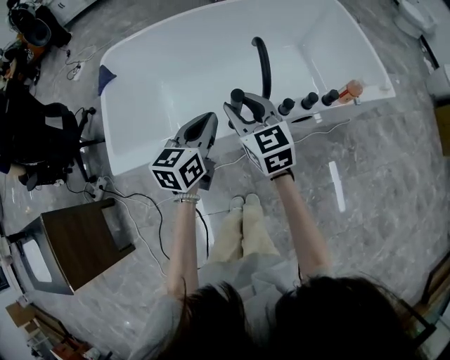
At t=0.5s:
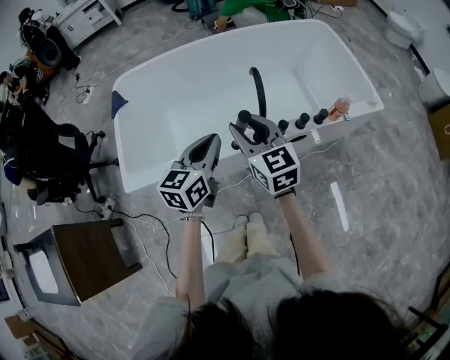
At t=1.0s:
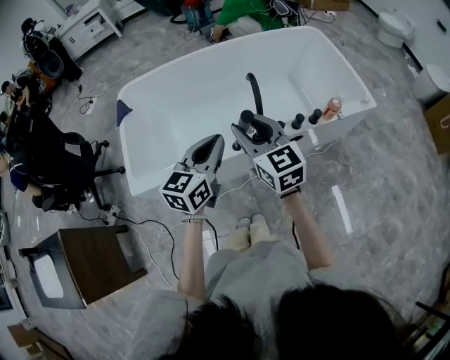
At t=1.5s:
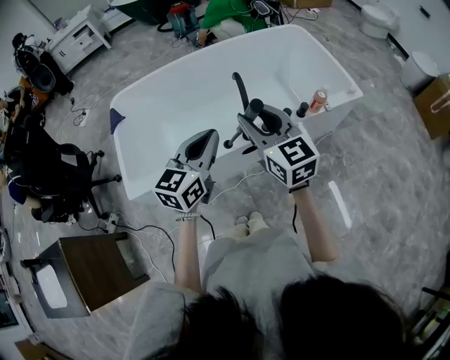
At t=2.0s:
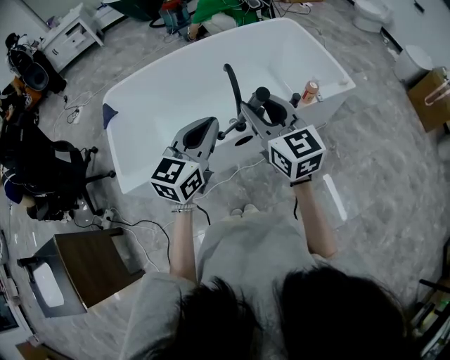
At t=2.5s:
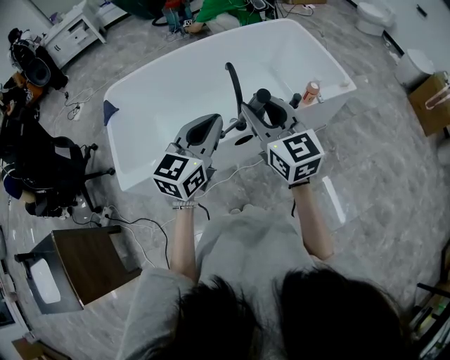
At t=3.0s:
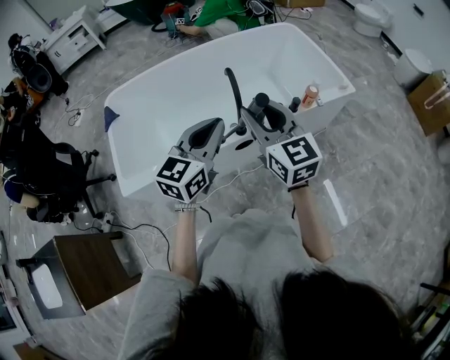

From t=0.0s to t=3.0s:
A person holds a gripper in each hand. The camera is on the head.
From t=0.0s to t=1.5s: Both grippers move upward and backward, approximately 20 cm.
From t=1.5s to t=3.0s: There are only small adjustments of the grippers.

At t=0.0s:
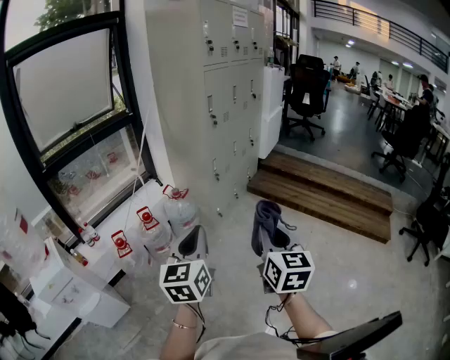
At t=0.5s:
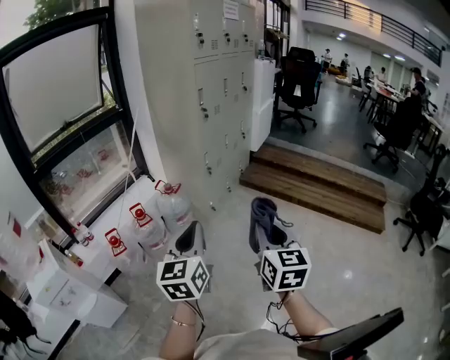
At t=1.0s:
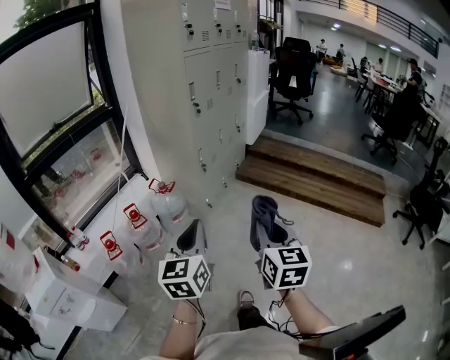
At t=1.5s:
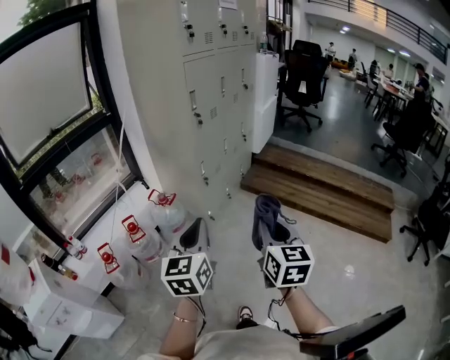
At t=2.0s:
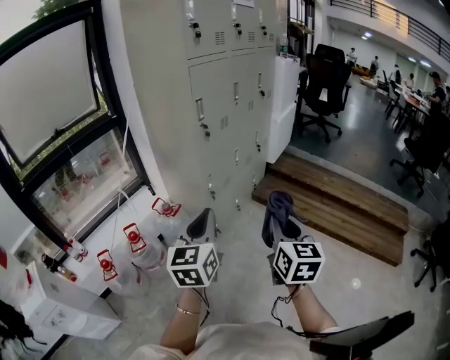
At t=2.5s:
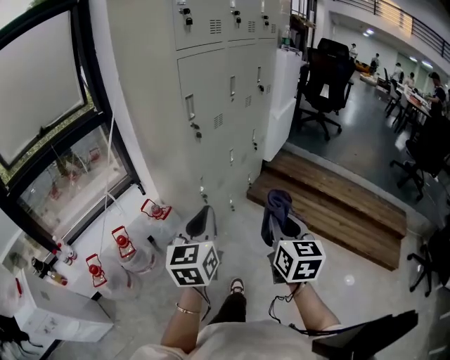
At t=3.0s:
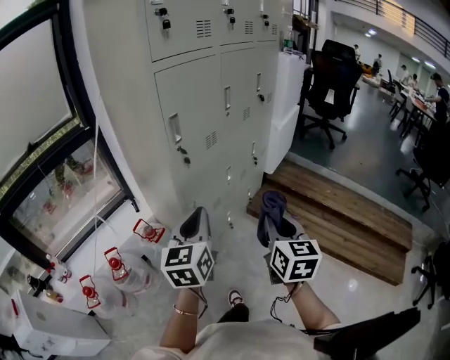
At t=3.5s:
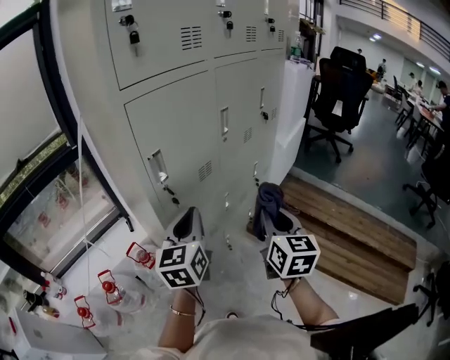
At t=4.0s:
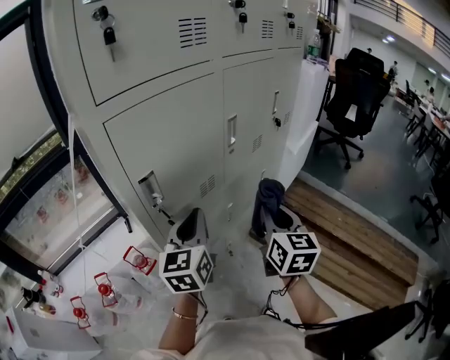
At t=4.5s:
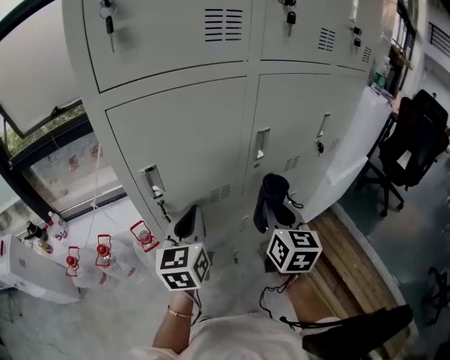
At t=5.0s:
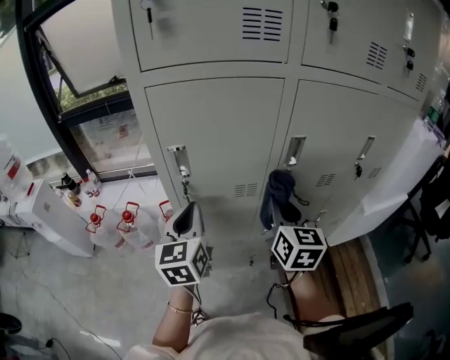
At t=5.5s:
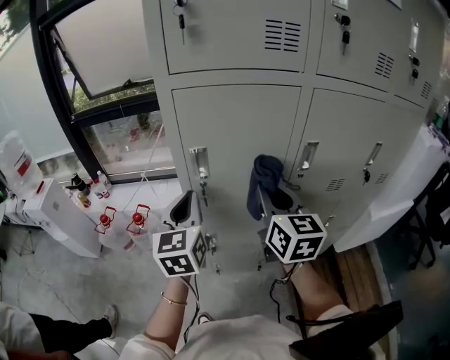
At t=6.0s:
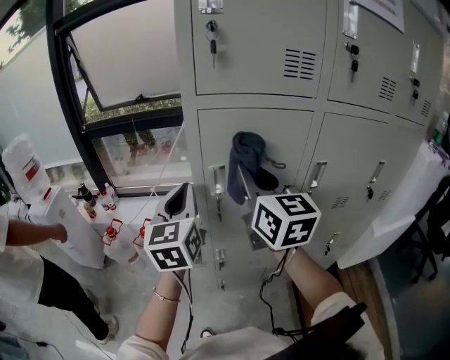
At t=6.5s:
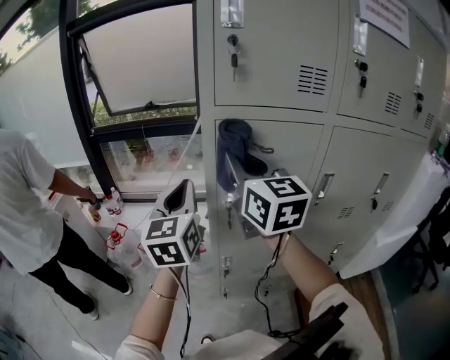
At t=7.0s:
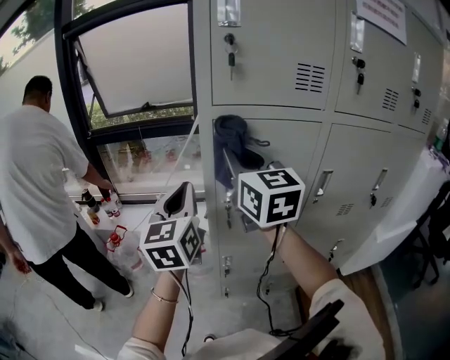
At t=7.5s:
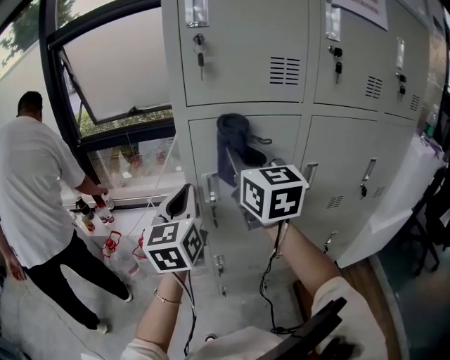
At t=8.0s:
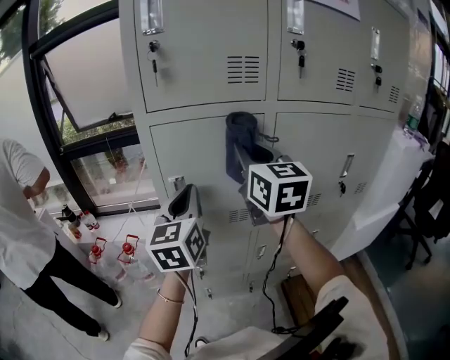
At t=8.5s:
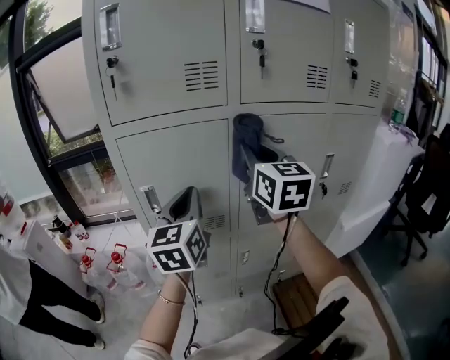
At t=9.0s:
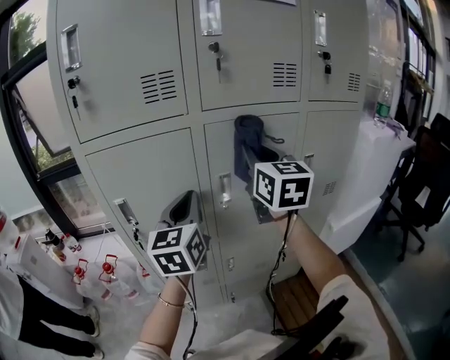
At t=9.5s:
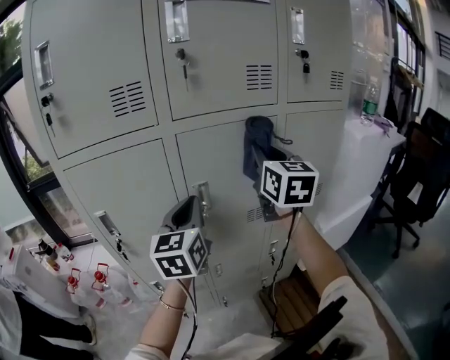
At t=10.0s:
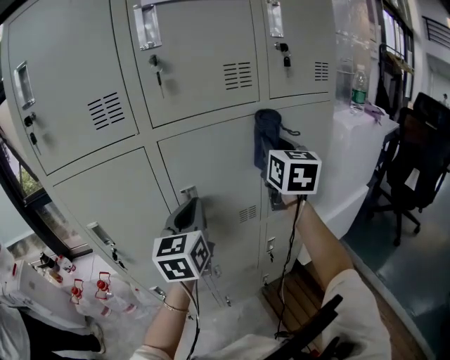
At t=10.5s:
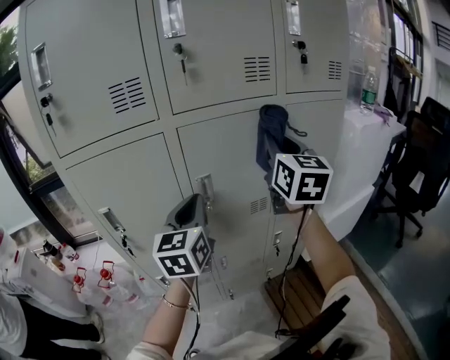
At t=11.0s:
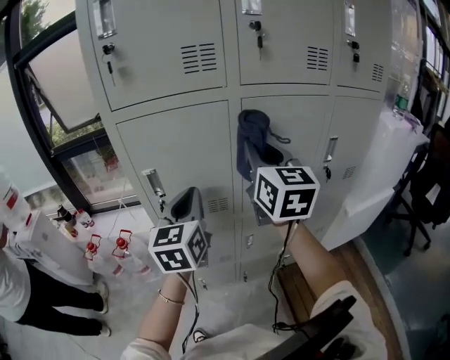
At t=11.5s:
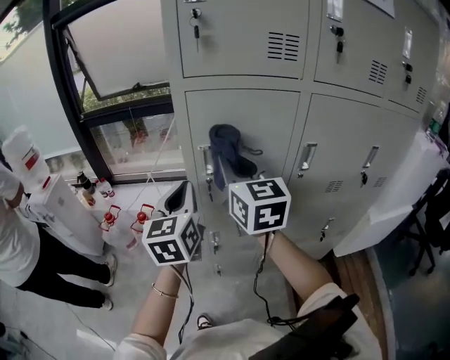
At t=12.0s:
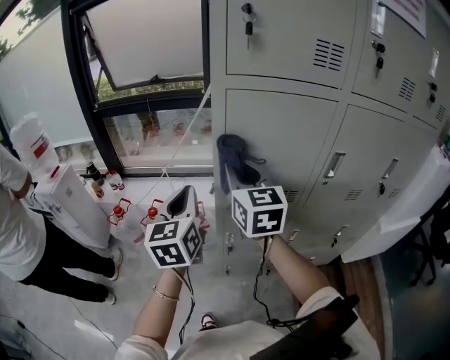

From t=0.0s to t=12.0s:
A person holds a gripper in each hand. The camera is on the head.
From t=0.0s to t=2.0s: The grippers both shift forward by approximately 30 cm.
From t=2.0s to t=4.0s: The two grippers travel together, forward, about 50 cm.
From t=4.0s to t=6.0s: The left gripper moves approximately 20 cm, and turns by approximately 50 degrees. Meanwhile the right gripper moves about 25 cm, and rotates roughly 60 degrees.
From t=6.0s to t=8.0s: Both grippers move to the right, about 10 cm.
From t=8.0s to t=10.0s: Both grippers travel together to the right, some 30 cm. The right gripper rotates some 30 degrees.
From t=10.0s to t=12.0s: The two grippers travel together, about 50 cm. The right gripper rotates approximately 30 degrees. Meanwhile the left gripper turns by about 30 degrees.

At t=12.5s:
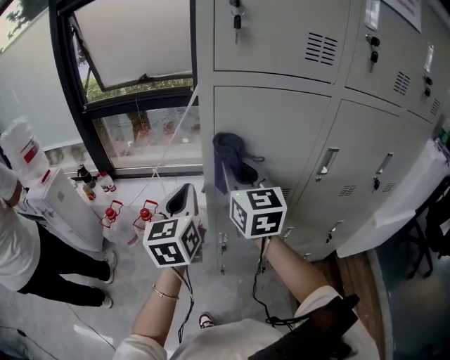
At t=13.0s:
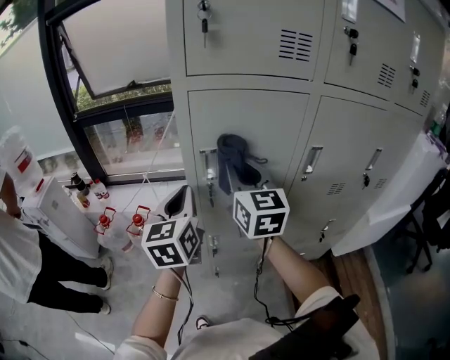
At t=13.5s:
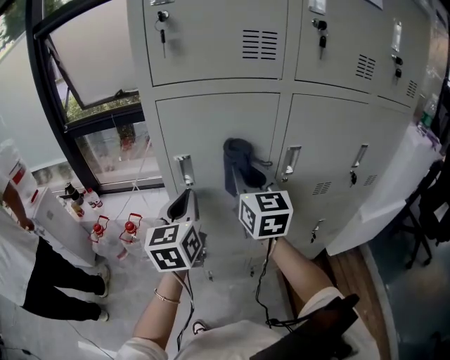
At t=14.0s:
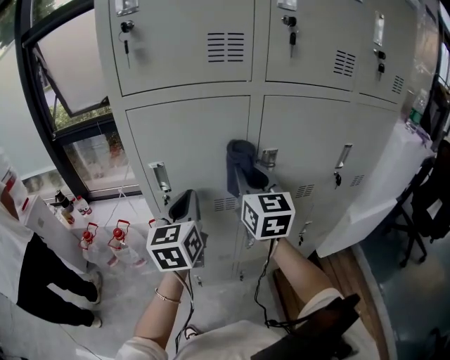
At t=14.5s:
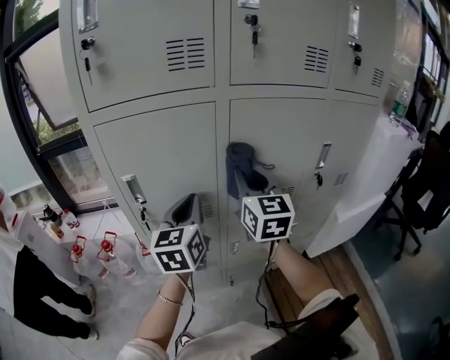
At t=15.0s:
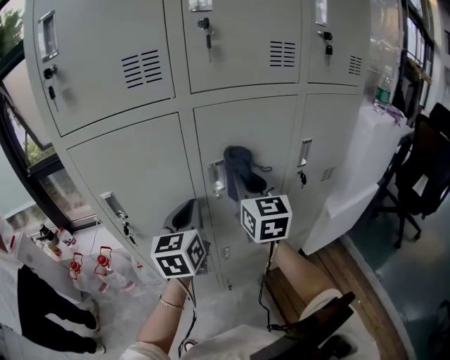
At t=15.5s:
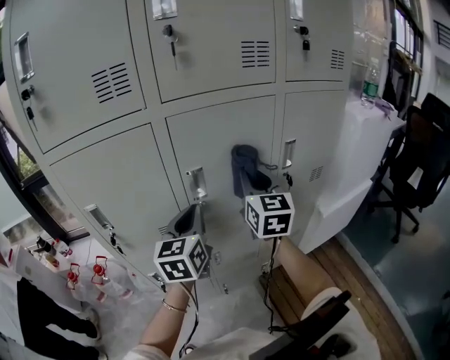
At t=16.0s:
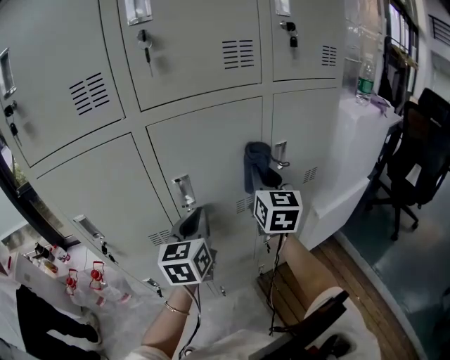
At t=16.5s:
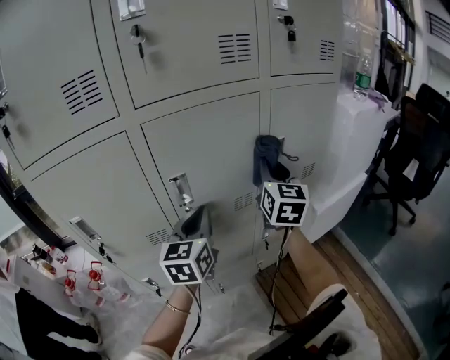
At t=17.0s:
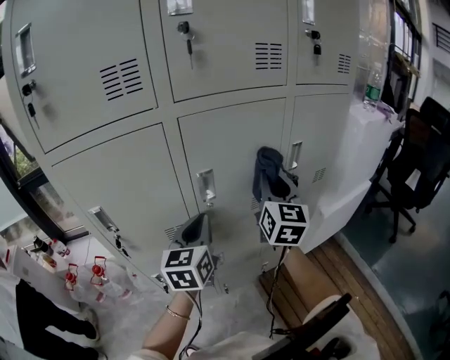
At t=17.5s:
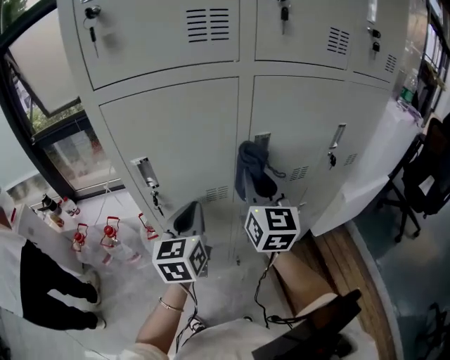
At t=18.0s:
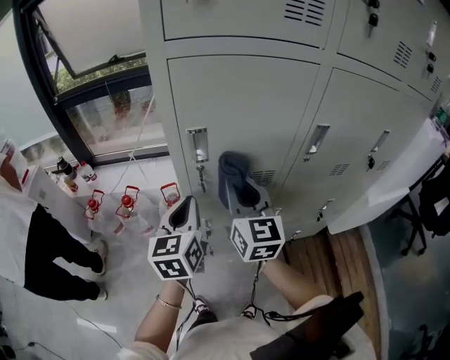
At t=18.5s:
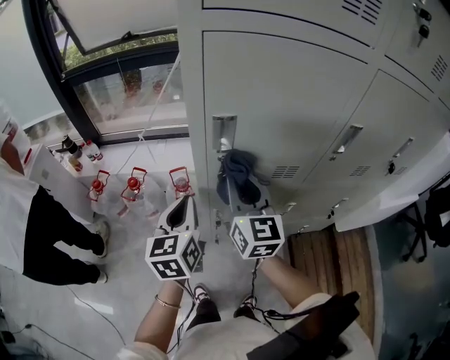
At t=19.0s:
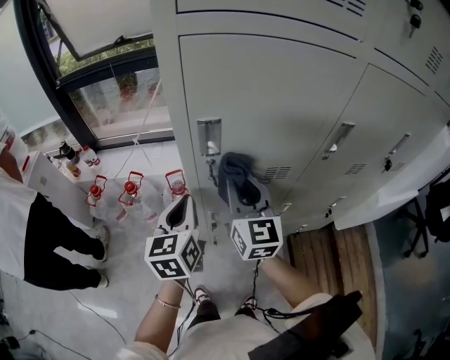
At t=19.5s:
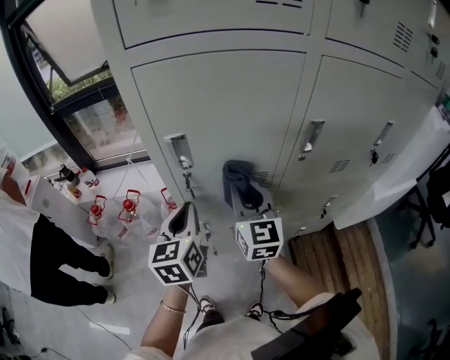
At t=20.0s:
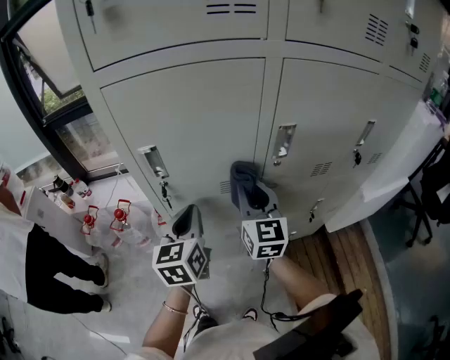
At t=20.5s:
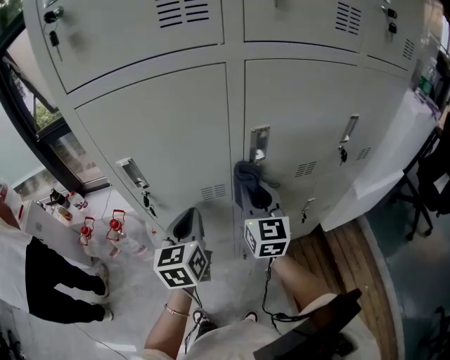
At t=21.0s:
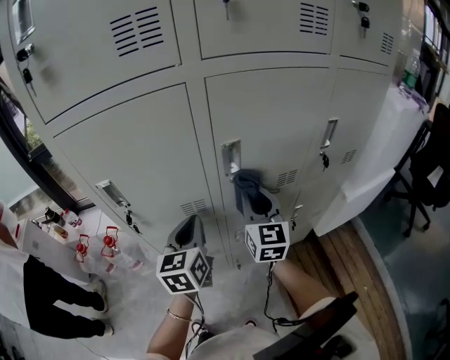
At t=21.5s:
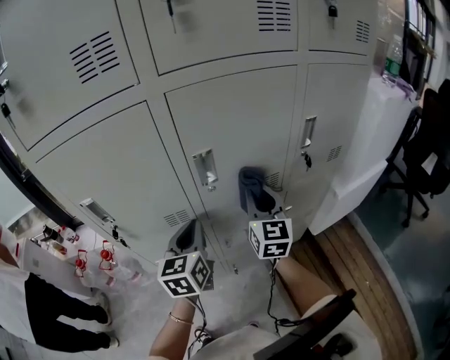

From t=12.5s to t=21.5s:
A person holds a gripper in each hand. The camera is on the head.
From t=12.5s to t=14.5s: The two grippers go approximately 25 cm to the right.
From t=14.5s to t=17.0s: The left gripper heads to the right, covering about 10 cm, while the right gripper goes some 15 cm to the right, and changes its angle by approximately 20 degrees.
From t=17.0s to t=19.5s: The left gripper moves some 30 cm, and turns by approximately 20 degrees. Meanwhile the right gripper changes place by some 35 cm, and changes its angle by about 30 degrees.
From t=19.5s to t=21.5s: The two grippers go some 25 cm to the right.

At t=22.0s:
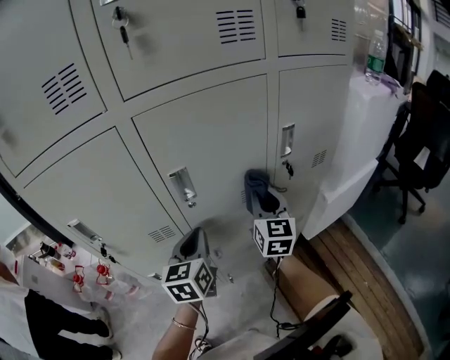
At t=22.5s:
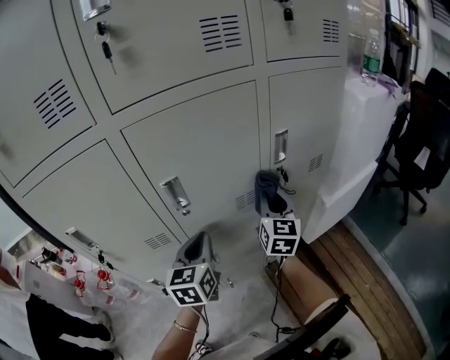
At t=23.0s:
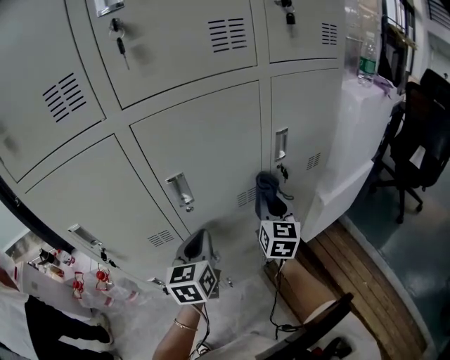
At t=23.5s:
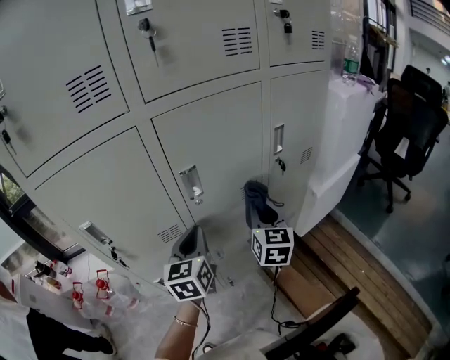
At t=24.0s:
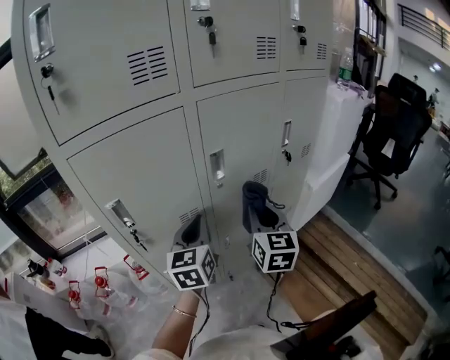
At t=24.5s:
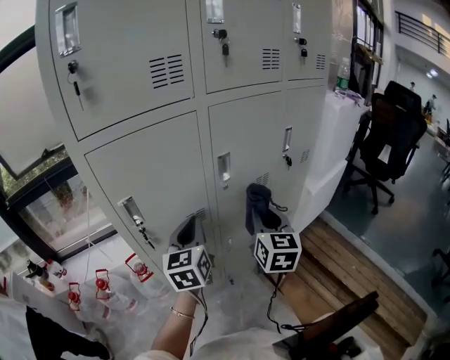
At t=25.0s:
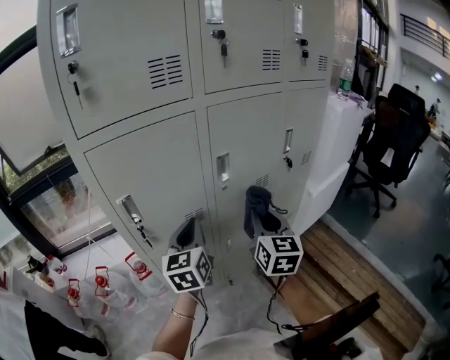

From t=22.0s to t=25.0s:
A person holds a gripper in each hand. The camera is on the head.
From t=22.0s to t=23.5s: The right gripper goes about 5 cm backward.
From t=23.5s to t=25.0s: The right gripper moves backward, to the left and upward, about 15 cm. Meanwhile the left gripper shifts about 10 cm to the left and backward.
